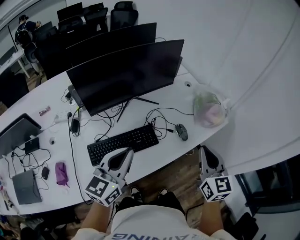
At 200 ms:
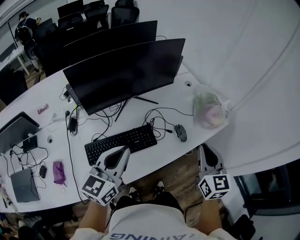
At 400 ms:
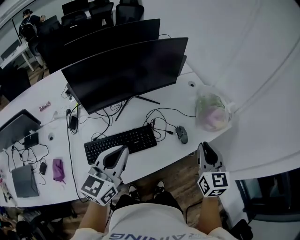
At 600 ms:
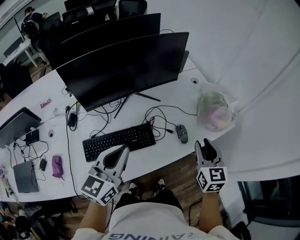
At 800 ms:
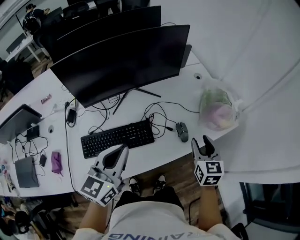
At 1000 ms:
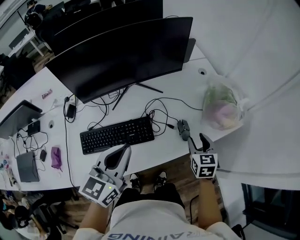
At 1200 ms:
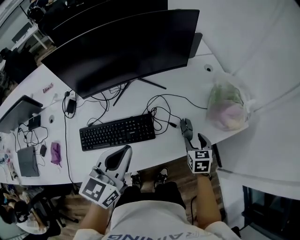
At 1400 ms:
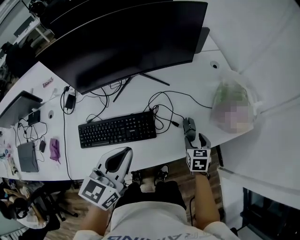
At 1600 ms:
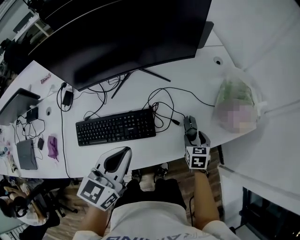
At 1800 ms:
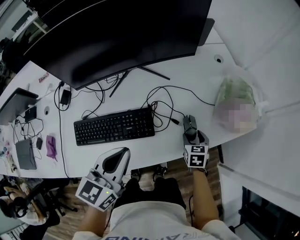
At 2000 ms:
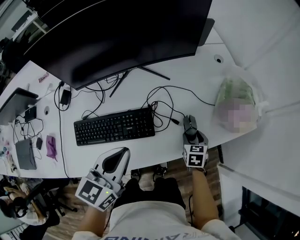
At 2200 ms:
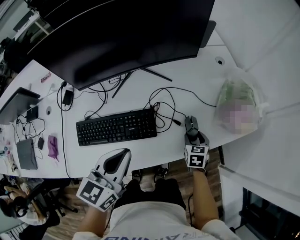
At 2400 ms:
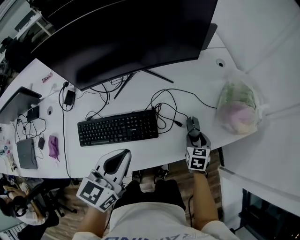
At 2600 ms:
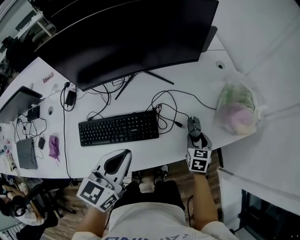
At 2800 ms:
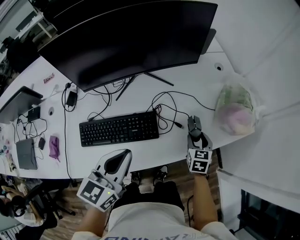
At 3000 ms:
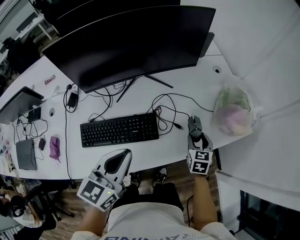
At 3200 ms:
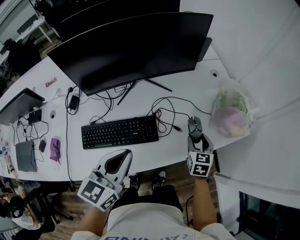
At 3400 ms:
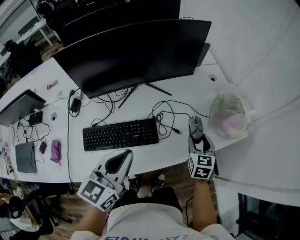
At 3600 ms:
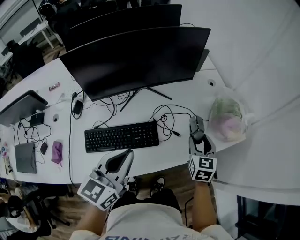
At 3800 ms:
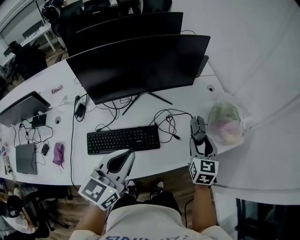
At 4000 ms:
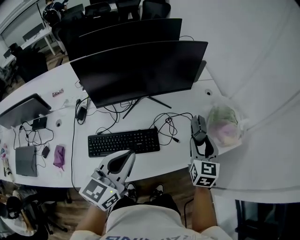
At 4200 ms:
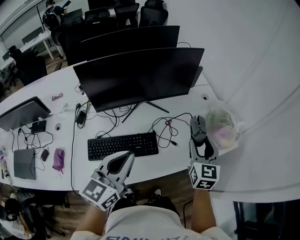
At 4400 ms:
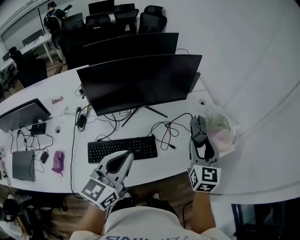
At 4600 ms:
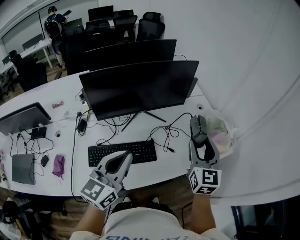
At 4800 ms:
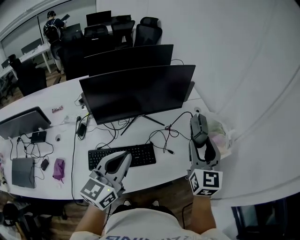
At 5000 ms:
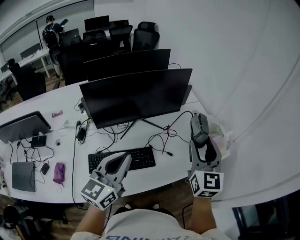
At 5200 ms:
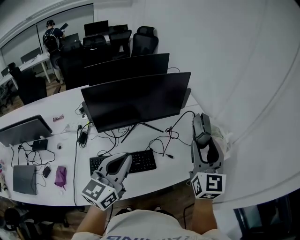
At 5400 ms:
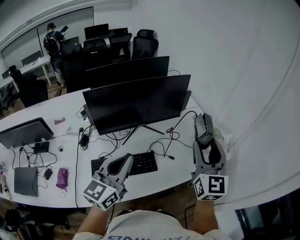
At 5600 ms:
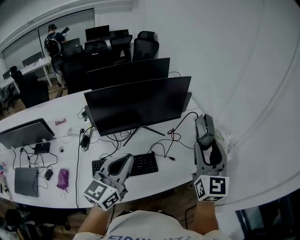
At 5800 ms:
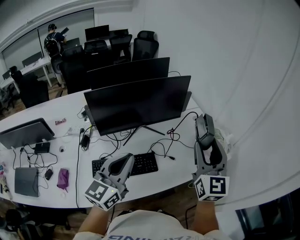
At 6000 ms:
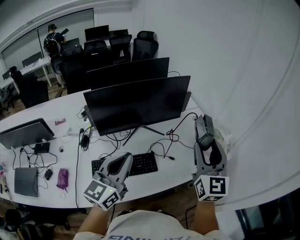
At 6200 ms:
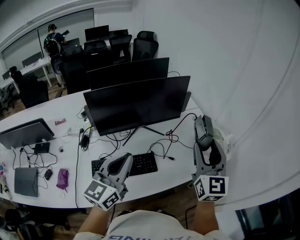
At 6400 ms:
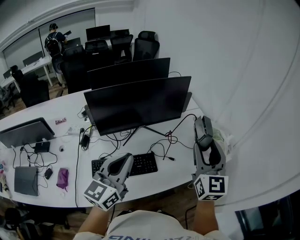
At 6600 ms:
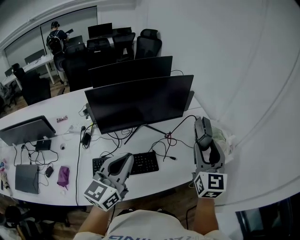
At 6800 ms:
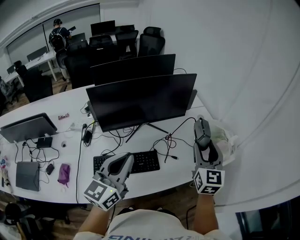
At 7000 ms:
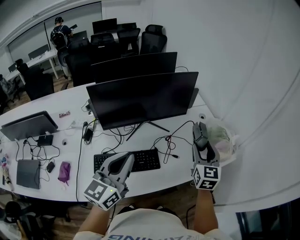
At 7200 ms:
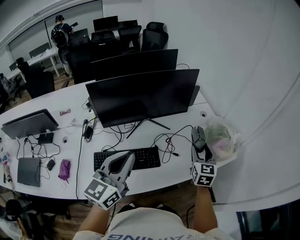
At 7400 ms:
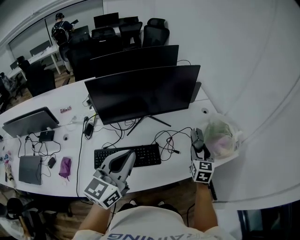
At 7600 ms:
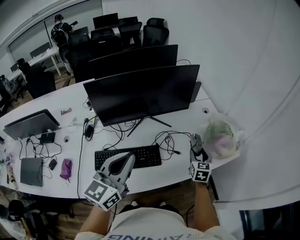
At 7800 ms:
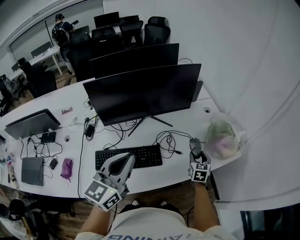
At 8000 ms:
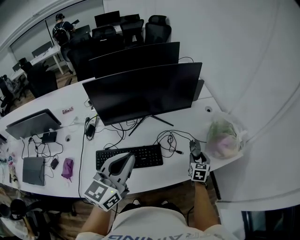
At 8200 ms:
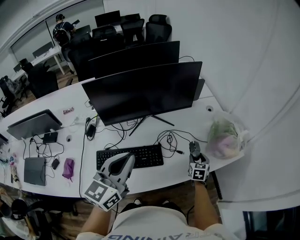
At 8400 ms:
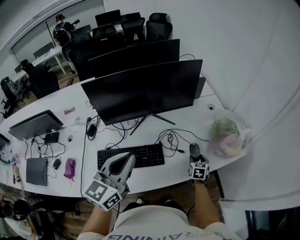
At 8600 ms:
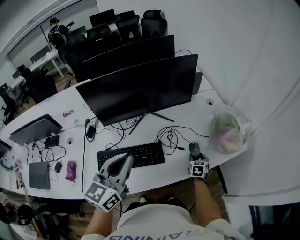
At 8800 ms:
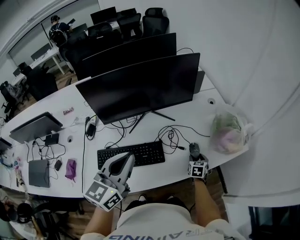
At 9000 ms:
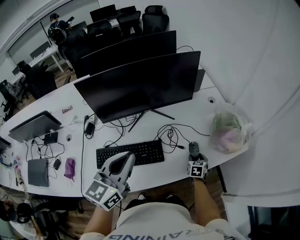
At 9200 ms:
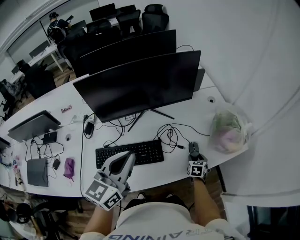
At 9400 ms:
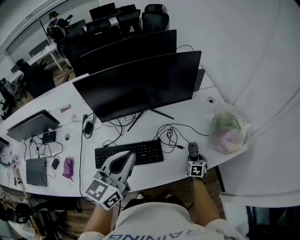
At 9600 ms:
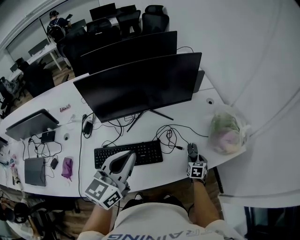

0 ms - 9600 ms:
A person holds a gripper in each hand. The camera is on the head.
0 ms - 1600 ms: The right gripper moves downward and forward, some 35 cm, points its fingers roughly 40 degrees further downward, and opens its fingers. Meanwhile the left gripper travels downward, to the right and forward by about 15 cm, and turns by approximately 20 degrees.
1600 ms - 3200 ms: The right gripper shifts roughly 10 cm upward.
3200 ms - 4800 ms: The left gripper shifts about 10 cm upward; the right gripper goes about 30 cm upward, and points its fingers approximately 40 degrees further upward.
4800 ms - 6400 ms: The right gripper is displaced upward by some 5 cm.
6400 ms - 8000 ms: The right gripper heads downward, covering about 35 cm, and points its fingers some 40 degrees further downward.
8000 ms - 9600 ms: The right gripper moves downward, roughly 10 cm.

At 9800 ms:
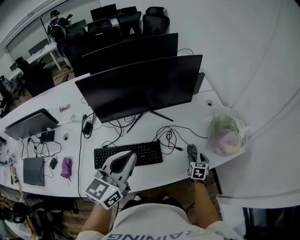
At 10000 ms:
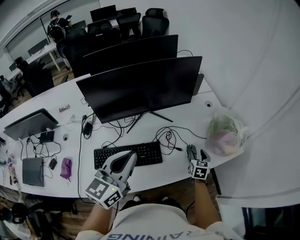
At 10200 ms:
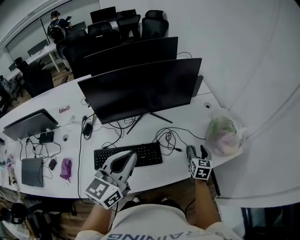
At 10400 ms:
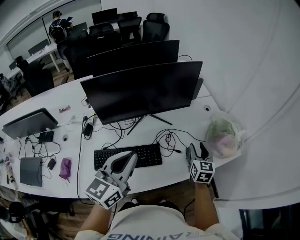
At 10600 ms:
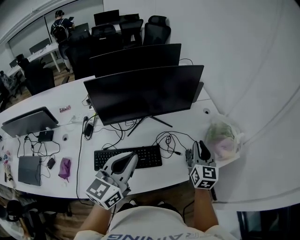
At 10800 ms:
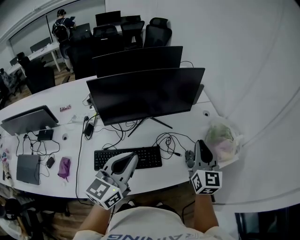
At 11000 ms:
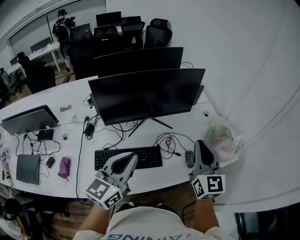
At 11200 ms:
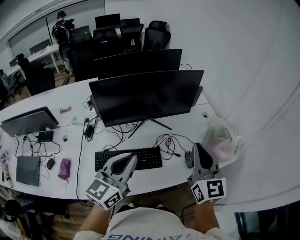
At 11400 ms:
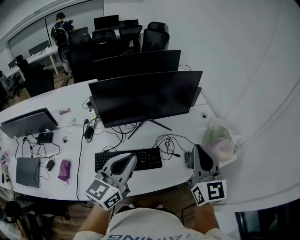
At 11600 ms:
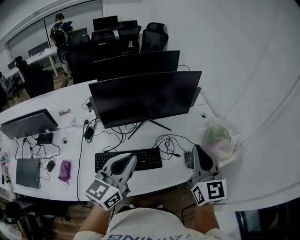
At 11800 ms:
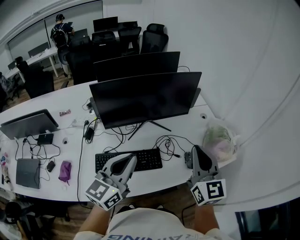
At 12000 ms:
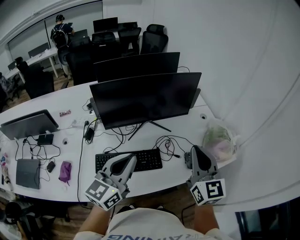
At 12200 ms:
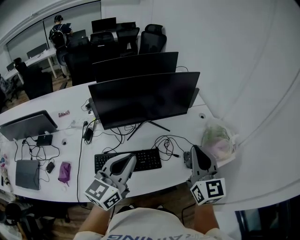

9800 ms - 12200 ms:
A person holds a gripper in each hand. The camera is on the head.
9800 ms - 11000 ms: The right gripper travels upward by some 35 cm, angles its fingers upward, by about 50 degrees, and closes up.
11000 ms - 12200 ms: The grippers make only small movements.

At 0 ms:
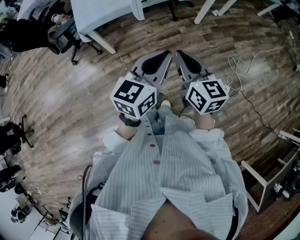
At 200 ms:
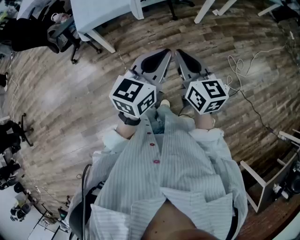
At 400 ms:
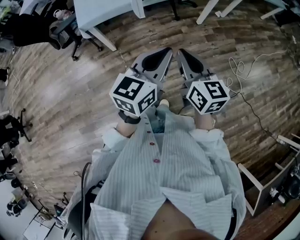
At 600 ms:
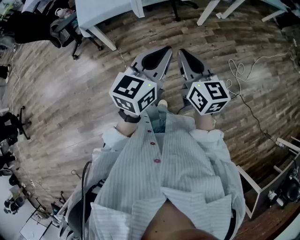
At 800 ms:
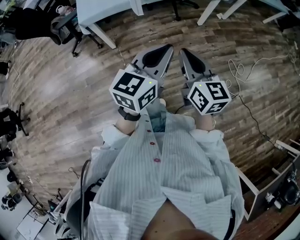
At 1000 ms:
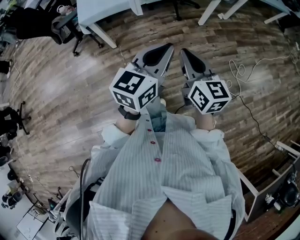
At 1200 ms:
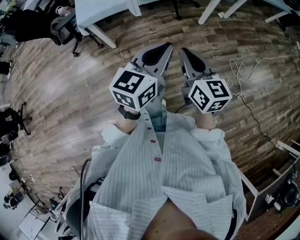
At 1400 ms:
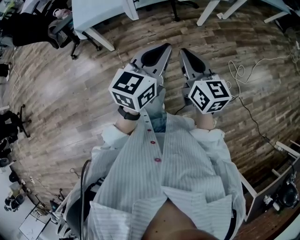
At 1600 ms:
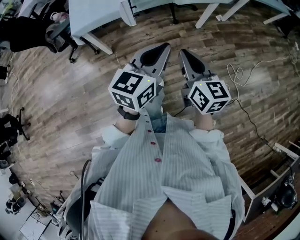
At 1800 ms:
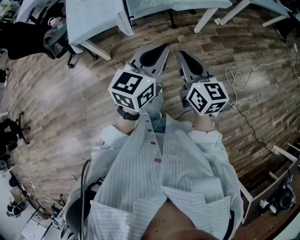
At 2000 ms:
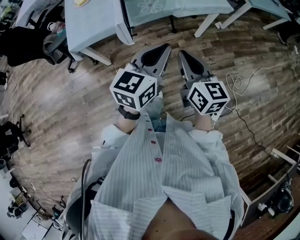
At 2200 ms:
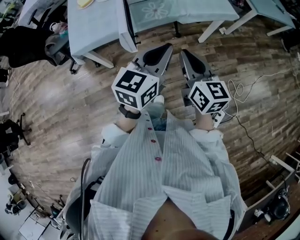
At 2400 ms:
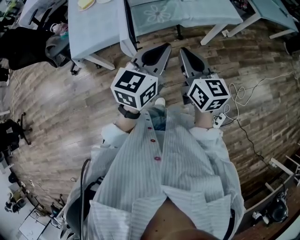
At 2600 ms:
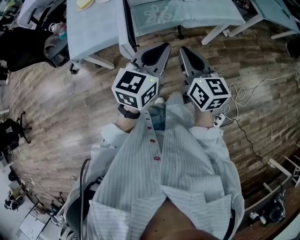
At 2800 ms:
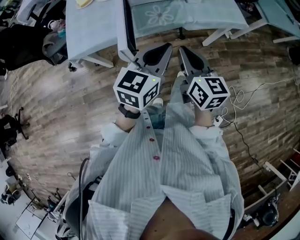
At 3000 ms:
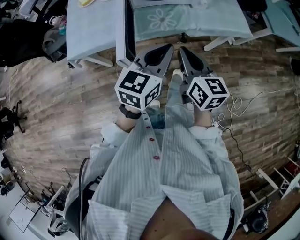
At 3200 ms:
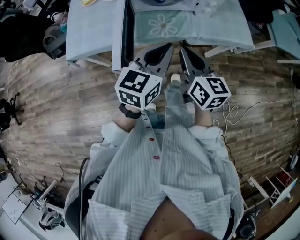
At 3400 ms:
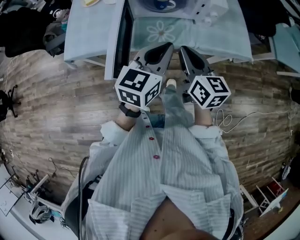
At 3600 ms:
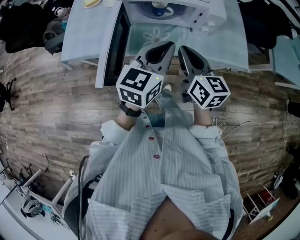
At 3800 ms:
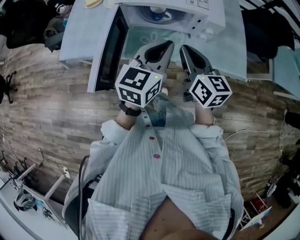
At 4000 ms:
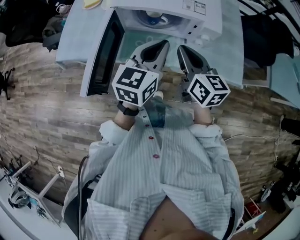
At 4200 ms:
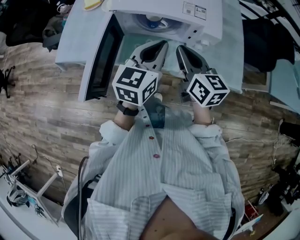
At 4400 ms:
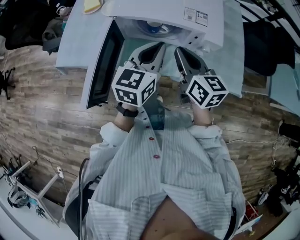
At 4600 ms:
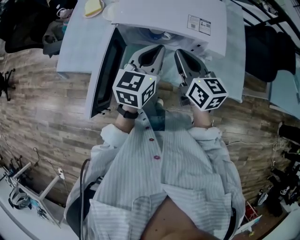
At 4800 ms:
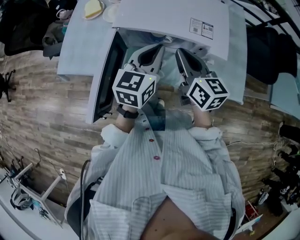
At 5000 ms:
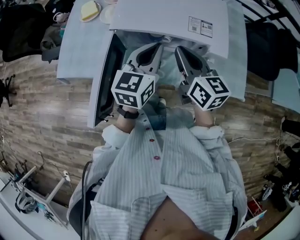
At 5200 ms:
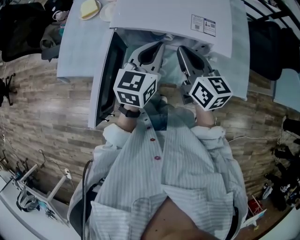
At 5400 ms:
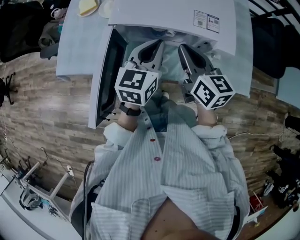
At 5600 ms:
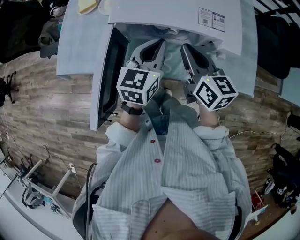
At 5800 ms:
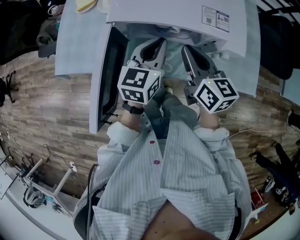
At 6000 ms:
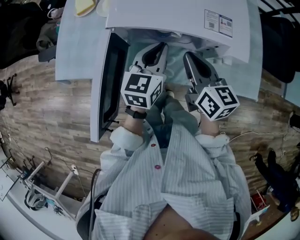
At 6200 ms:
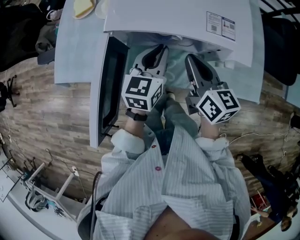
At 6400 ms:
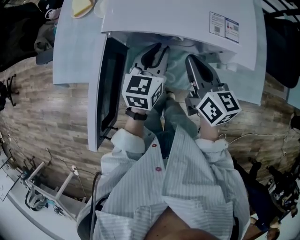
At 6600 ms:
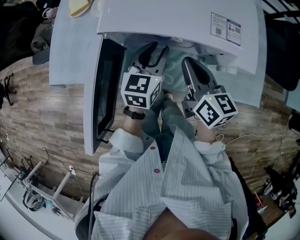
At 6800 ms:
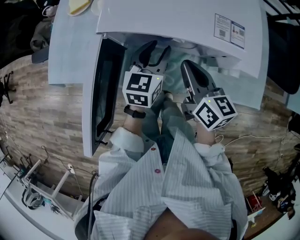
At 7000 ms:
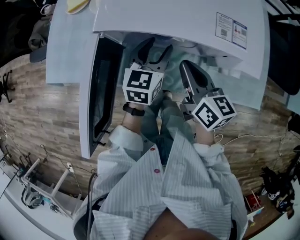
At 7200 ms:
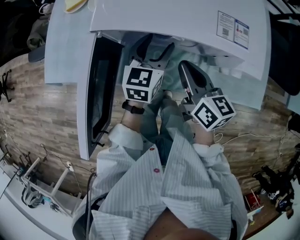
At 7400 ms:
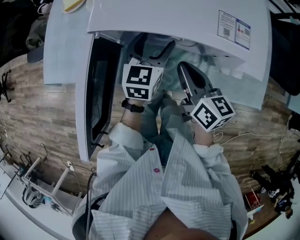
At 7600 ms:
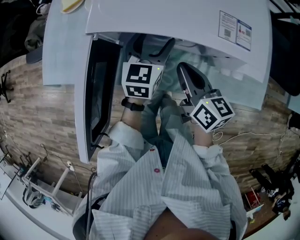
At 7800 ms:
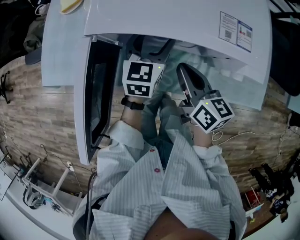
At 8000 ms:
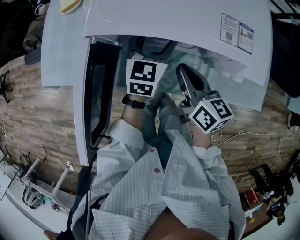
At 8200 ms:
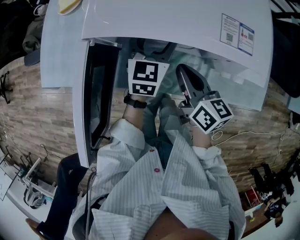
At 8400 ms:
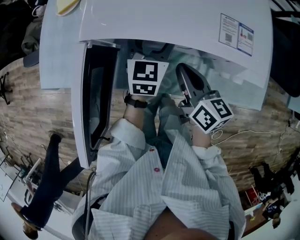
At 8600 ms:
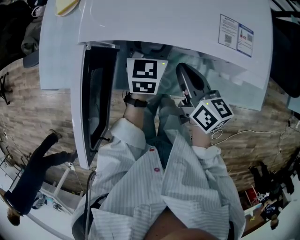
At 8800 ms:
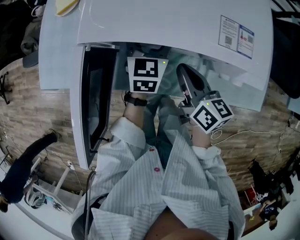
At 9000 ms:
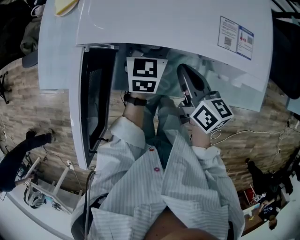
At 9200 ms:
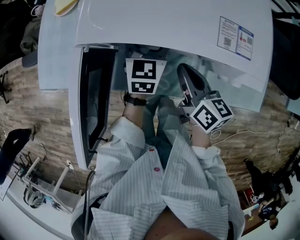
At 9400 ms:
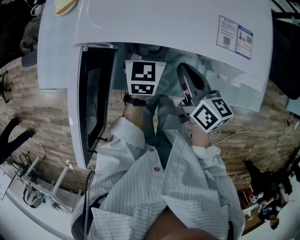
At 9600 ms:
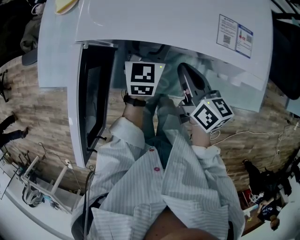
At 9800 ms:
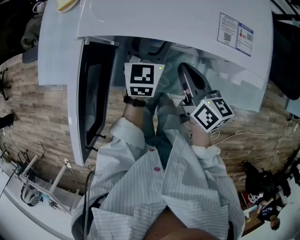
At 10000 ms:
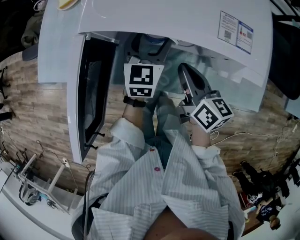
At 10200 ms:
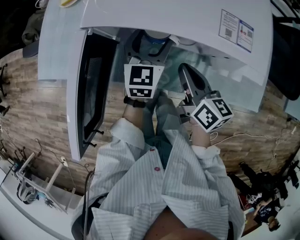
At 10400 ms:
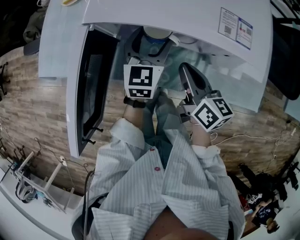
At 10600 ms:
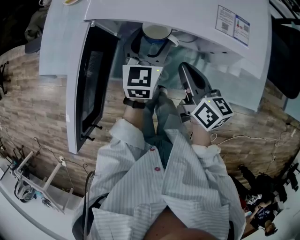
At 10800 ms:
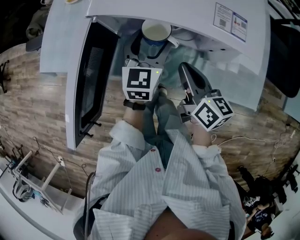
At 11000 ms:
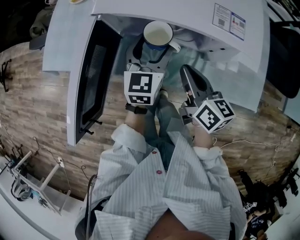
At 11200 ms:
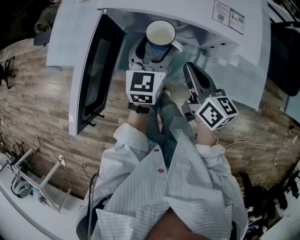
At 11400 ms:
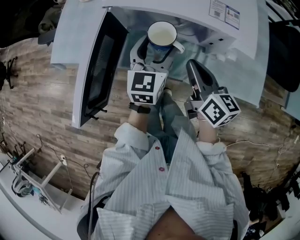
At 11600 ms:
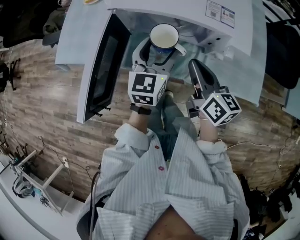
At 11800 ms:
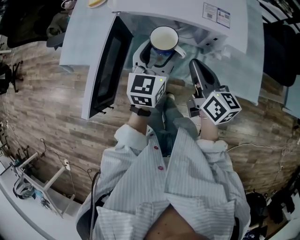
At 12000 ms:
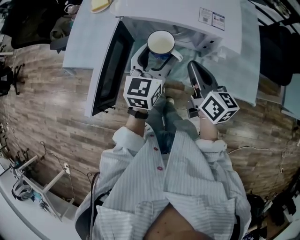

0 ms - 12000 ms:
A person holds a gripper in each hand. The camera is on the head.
0 ms - 1600 ms: Both grippers travel together forward and to the right, approximately 10 cm.
1600 ms - 3000 ms: The grippers both shift forward by approximately 30 cm.
3000 ms - 4400 ms: The two grippers go some 25 cm forward. The right gripper rotates approximately 20 degrees; the left gripper rotates about 20 degrees.
4400 ms - 6000 ms: Both grippers travel together downward and forward, about 10 cm.
6000 ms - 7600 ms: The left gripper goes roughly 10 cm downward and forward, and opens its fingers. The right gripper is displaced downward by approximately 10 cm.
7600 ms - 10400 ms: The grippers move only a little.
10400 ms - 12000 ms: Both grippers travel together upward and backward, roughly 15 cm.
